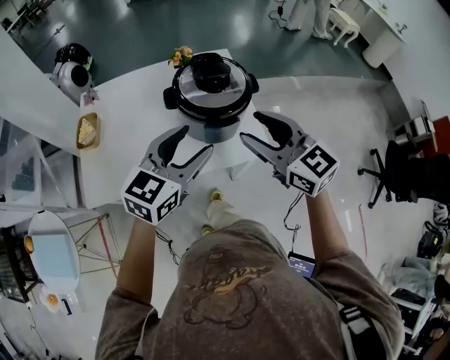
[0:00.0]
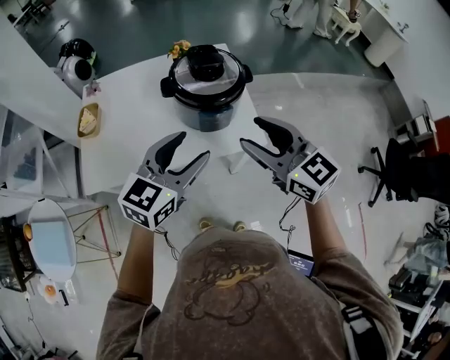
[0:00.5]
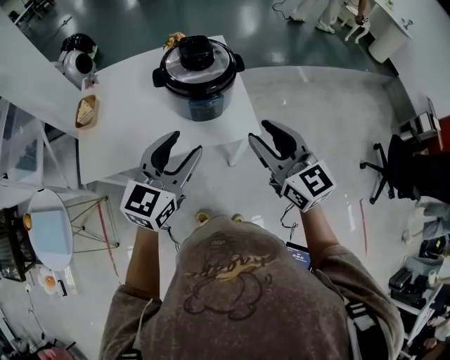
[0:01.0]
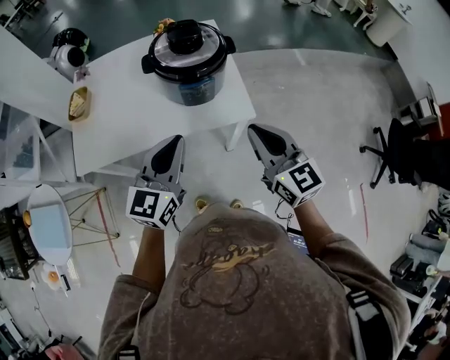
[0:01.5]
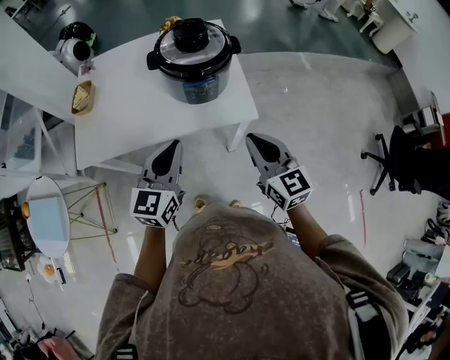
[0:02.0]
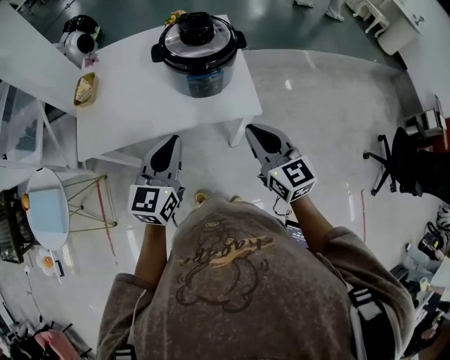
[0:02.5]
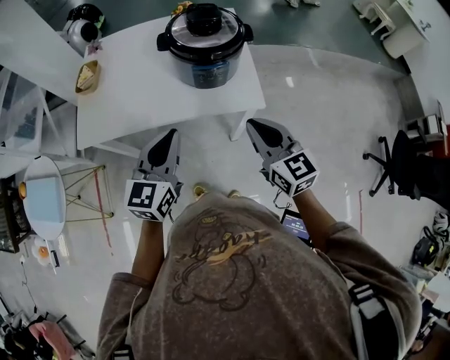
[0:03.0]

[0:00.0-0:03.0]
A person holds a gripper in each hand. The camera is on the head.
0:00.0 to 0:01.5: The left gripper is displaced backward by approximately 10 cm, and closes. Meanwhile the right gripper moves backward, to the right and downward, approximately 15 cm, and closes its fingers.
0:01.5 to 0:03.0: The left gripper ends up roughly 5 cm from where it was.
